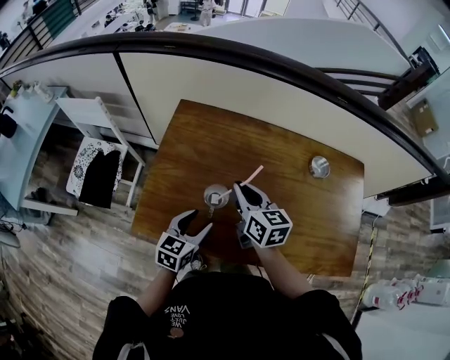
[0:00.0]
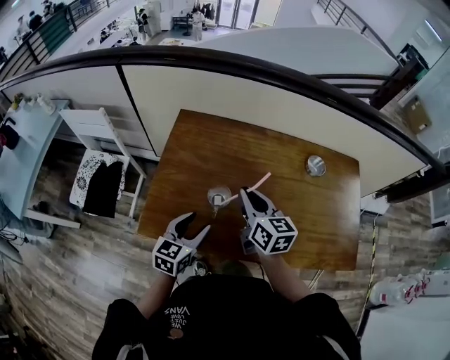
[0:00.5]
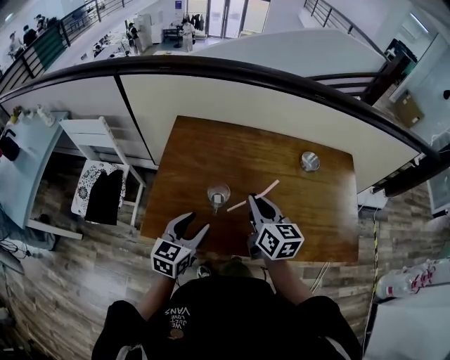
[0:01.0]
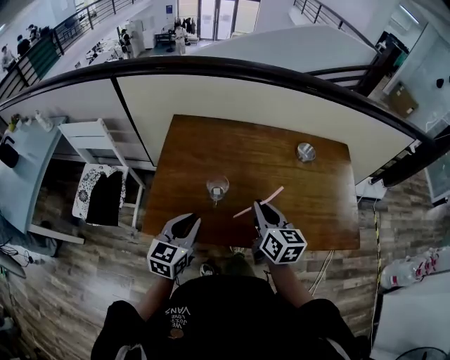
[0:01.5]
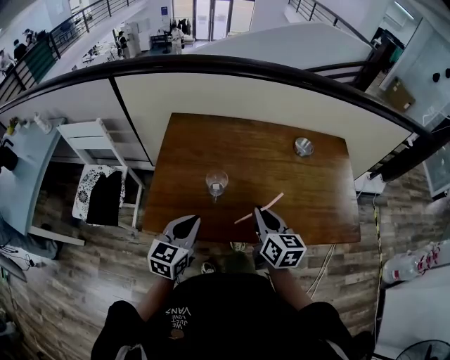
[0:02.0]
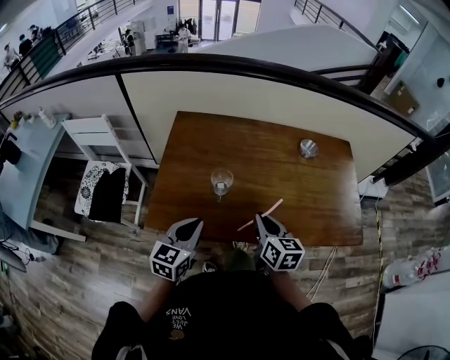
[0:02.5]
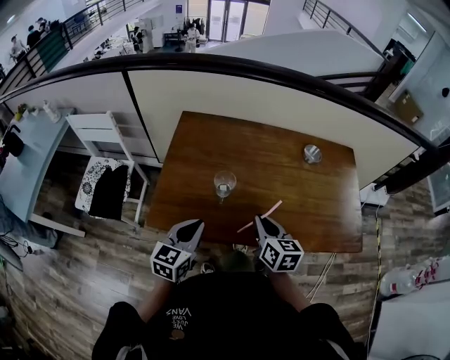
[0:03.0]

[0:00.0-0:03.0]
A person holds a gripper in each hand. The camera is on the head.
0:00.0 to 0:01.5: The left gripper shifts approximately 10 cm upward and backward, and closes. Meanwhile the right gripper heads backward and to the right, covering some 15 cm.
0:01.5 to 0:03.0: The right gripper goes roughly 5 cm downward.

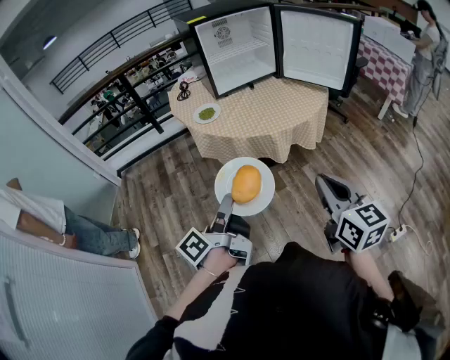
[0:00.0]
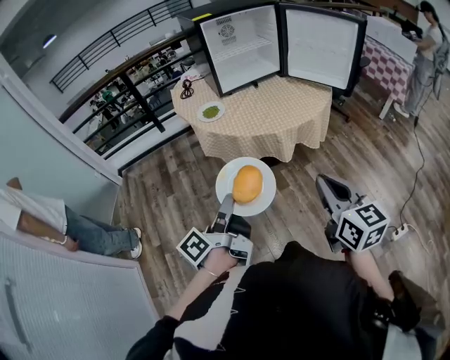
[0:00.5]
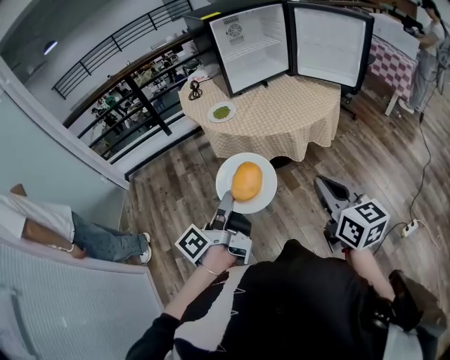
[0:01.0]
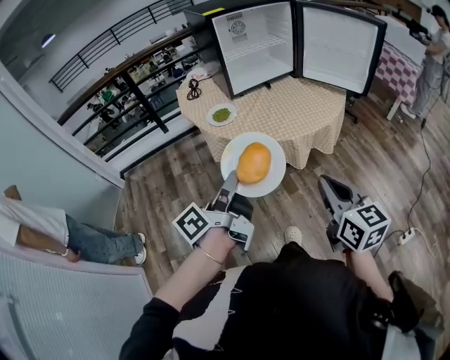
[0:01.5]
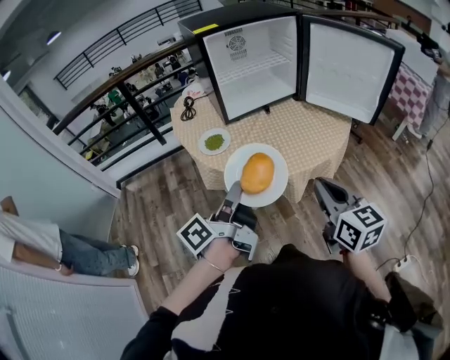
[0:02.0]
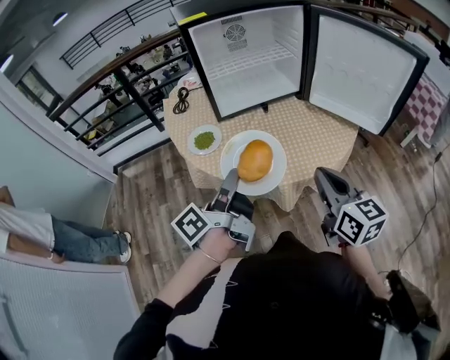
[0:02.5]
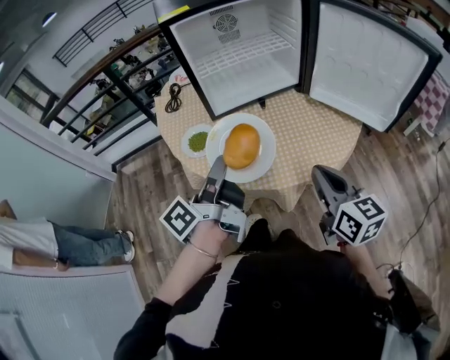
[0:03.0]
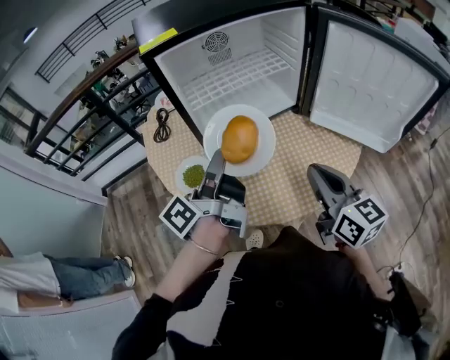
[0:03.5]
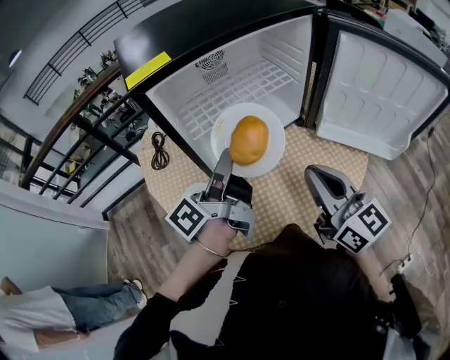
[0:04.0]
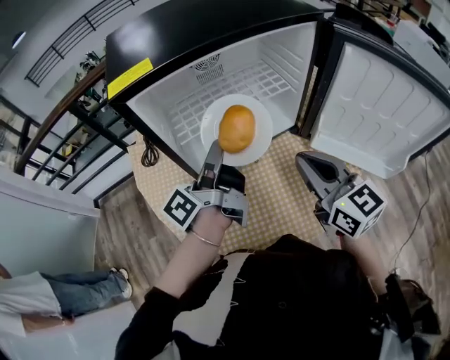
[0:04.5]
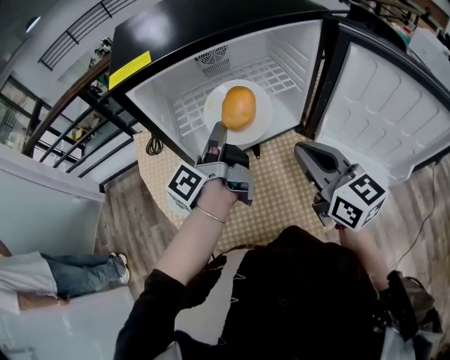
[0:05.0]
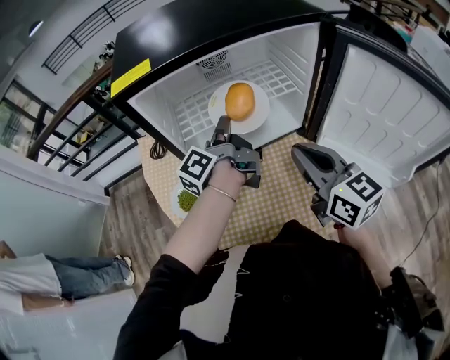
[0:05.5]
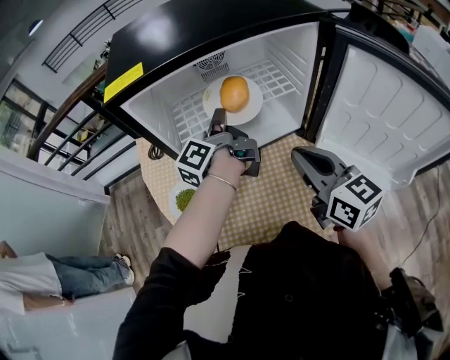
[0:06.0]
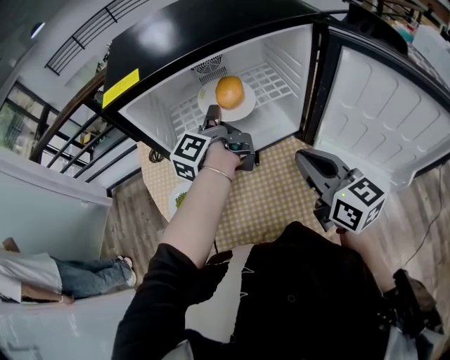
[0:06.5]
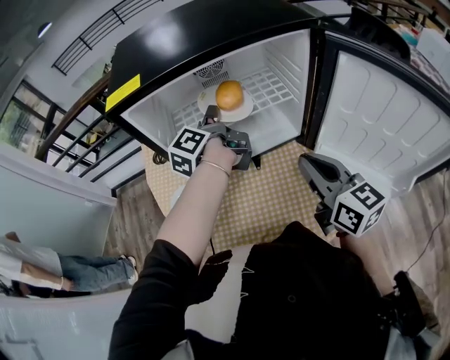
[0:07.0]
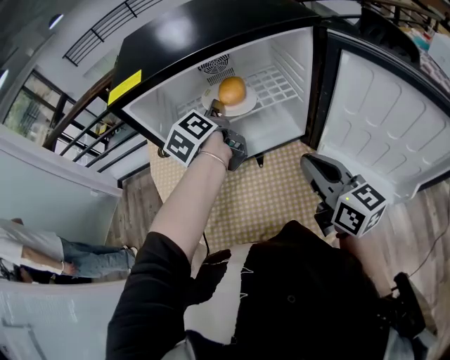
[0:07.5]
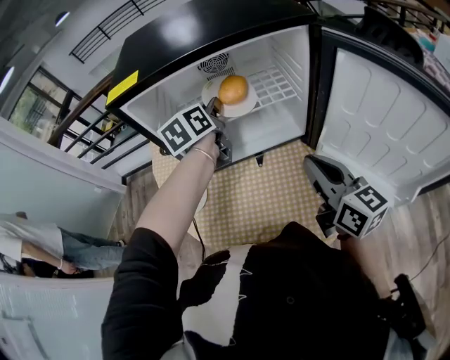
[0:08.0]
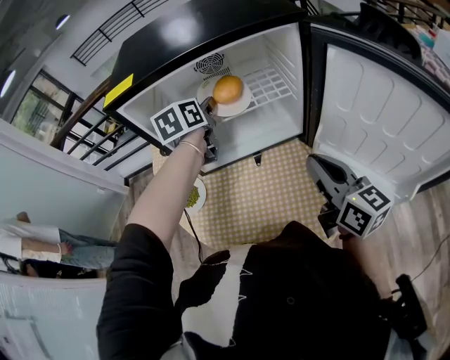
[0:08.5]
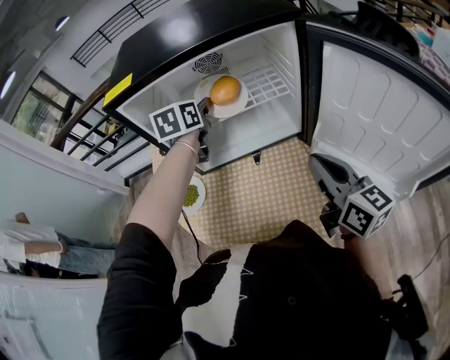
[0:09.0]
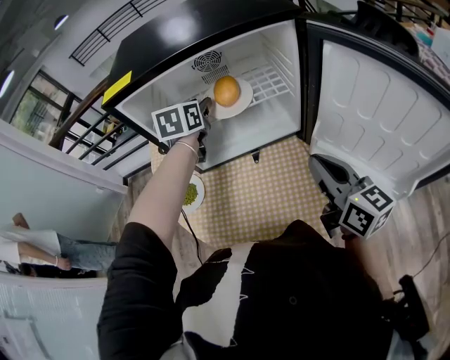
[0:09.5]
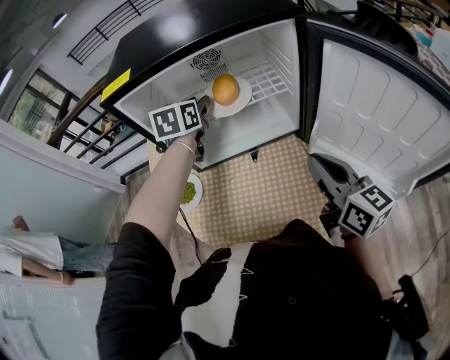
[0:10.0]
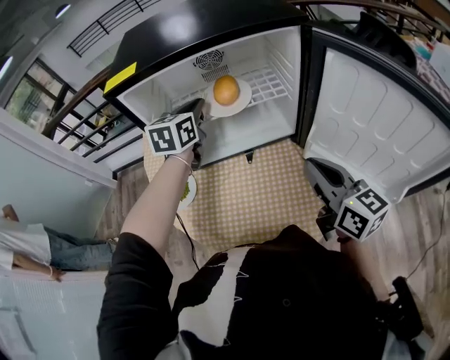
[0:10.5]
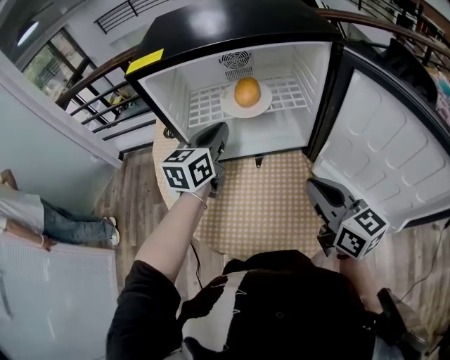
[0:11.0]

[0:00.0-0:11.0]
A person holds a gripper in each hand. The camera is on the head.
0:00.0 to 0:02.0: The grippers both shift forward by about 25 cm.
0:02.0 to 0:03.5: Both grippers move forward, approximately 25 cm.
0:03.5 to 0:05.5: The two grippers go approximately 20 cm forward.
0:05.5 to 0:07.5: The left gripper heads forward, covering some 5 cm, and rotates approximately 40 degrees. Meanwhile the right gripper changes place by roughly 5 cm.
0:07.5 to 0:09.0: The left gripper changes its angle by approximately 40 degrees.
0:09.0 to 0:11.0: The left gripper moves backward, some 10 cm, and closes up.

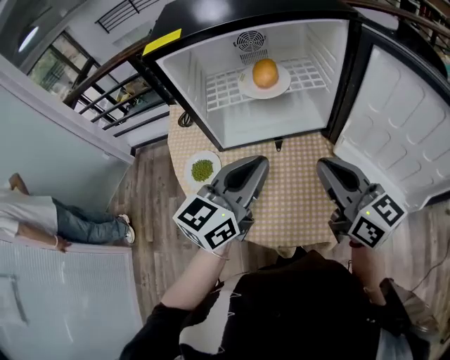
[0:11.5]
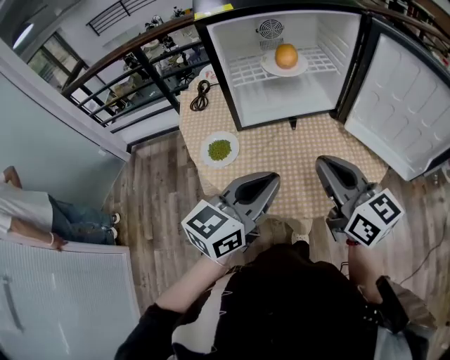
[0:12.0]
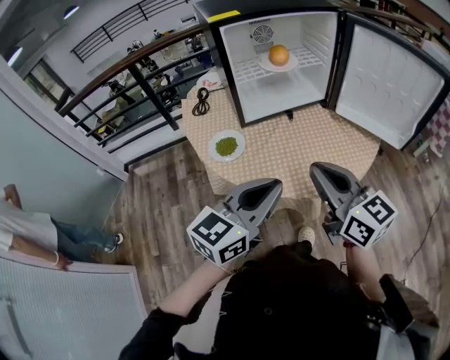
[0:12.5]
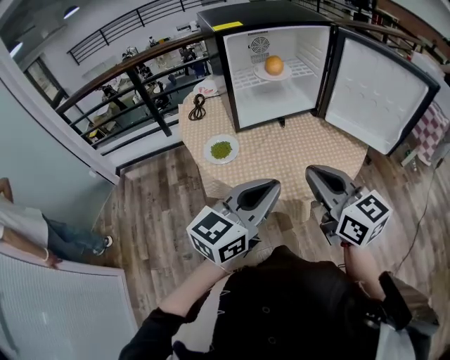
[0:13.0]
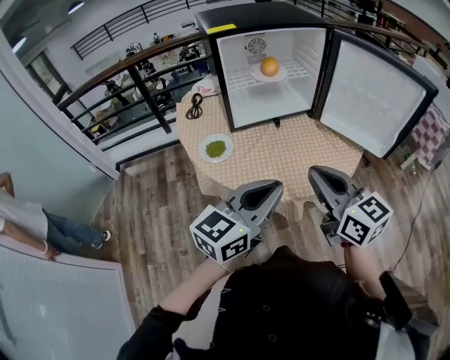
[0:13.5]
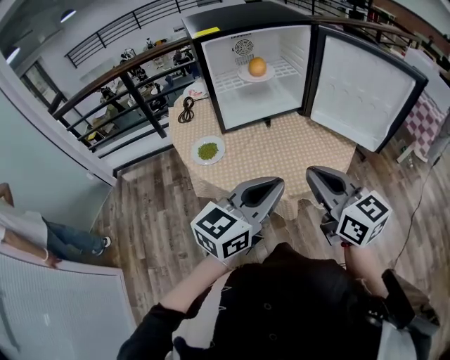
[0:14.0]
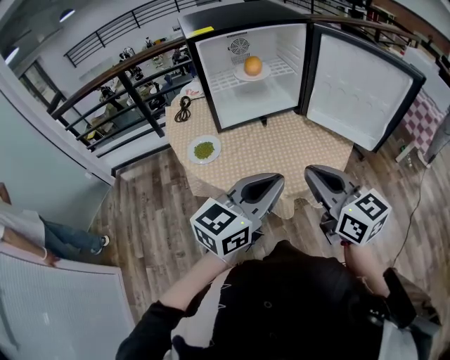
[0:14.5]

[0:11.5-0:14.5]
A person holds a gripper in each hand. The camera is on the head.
0:11.5 to 0:13.0: The right gripper moves backward and to the left, approximately 25 cm, while the left gripper goes approximately 25 cm backward.
0:13.0 to 0:14.5: The grippers both shift to the right by roughly 10 cm.

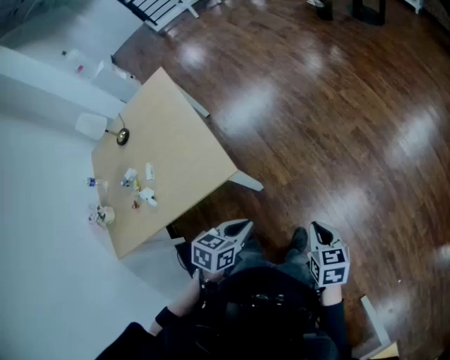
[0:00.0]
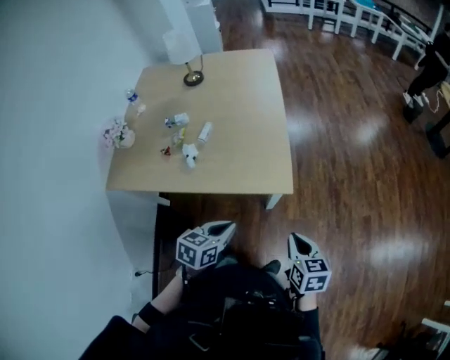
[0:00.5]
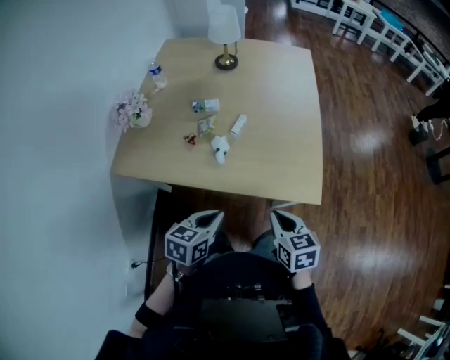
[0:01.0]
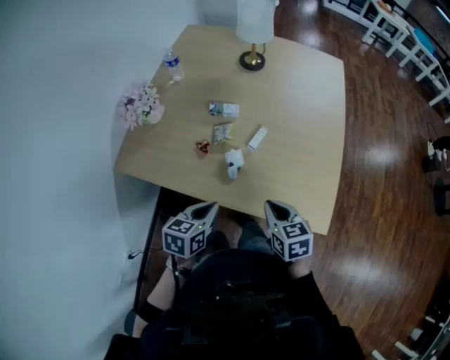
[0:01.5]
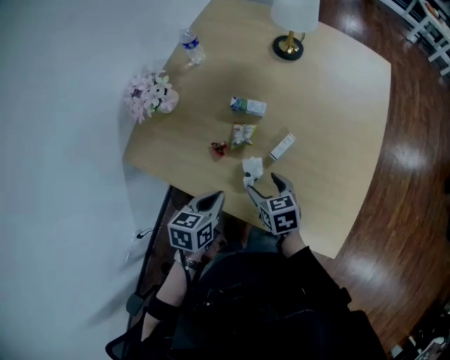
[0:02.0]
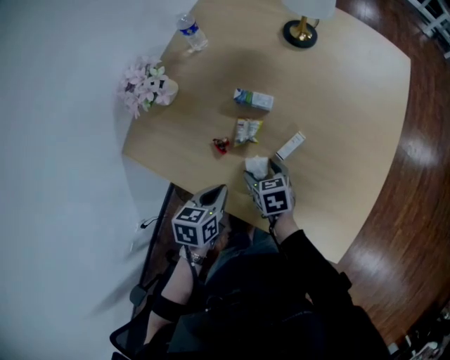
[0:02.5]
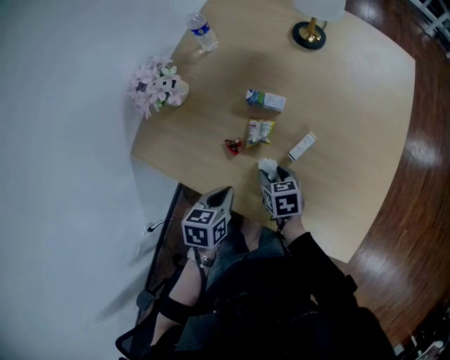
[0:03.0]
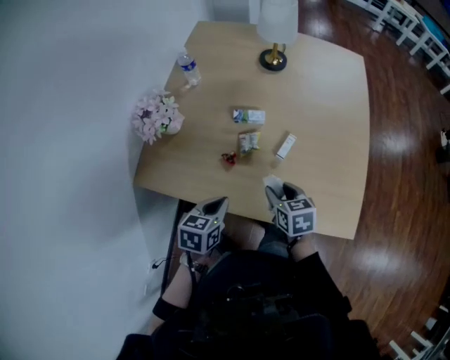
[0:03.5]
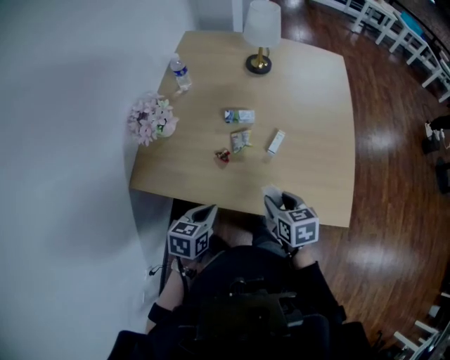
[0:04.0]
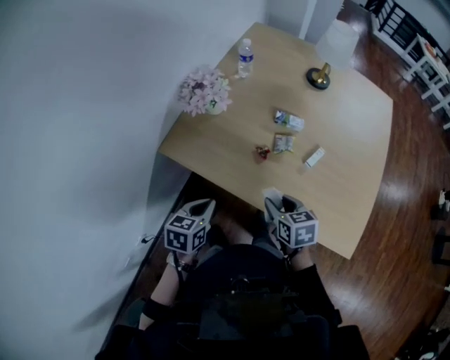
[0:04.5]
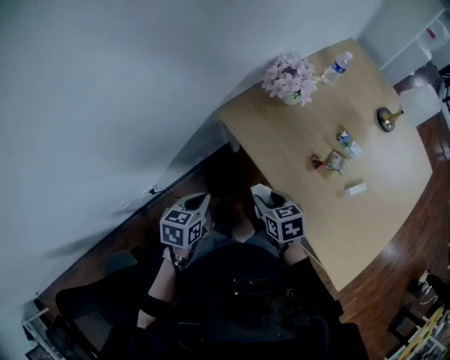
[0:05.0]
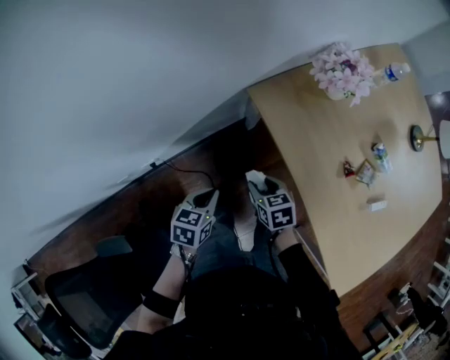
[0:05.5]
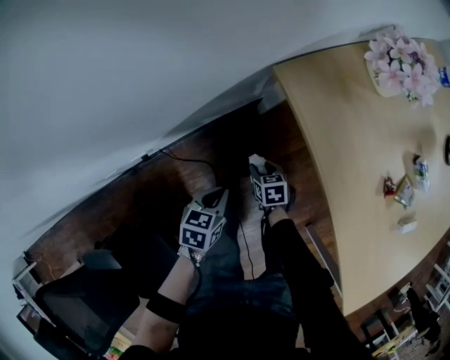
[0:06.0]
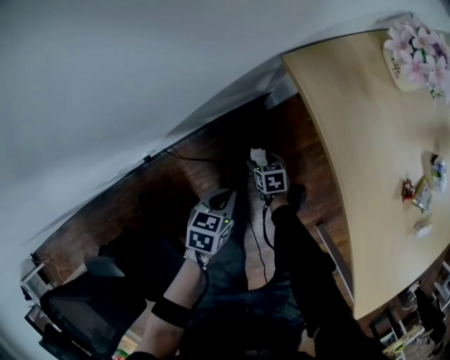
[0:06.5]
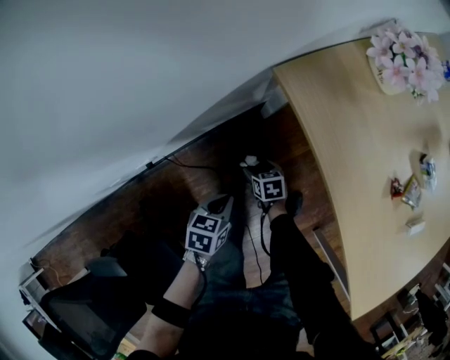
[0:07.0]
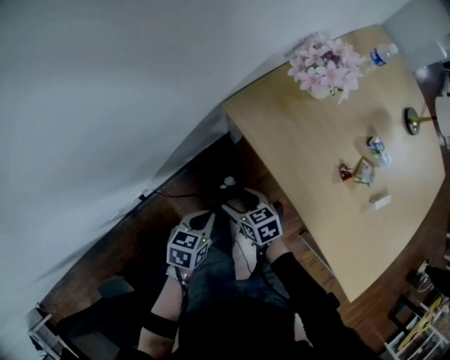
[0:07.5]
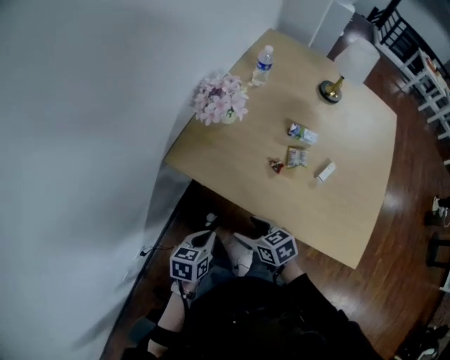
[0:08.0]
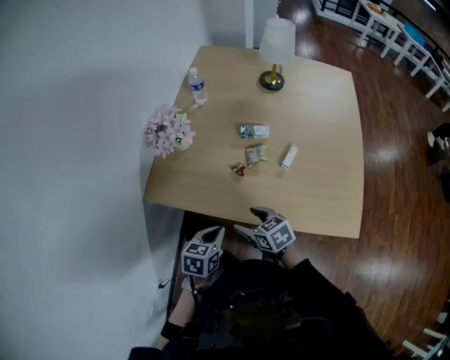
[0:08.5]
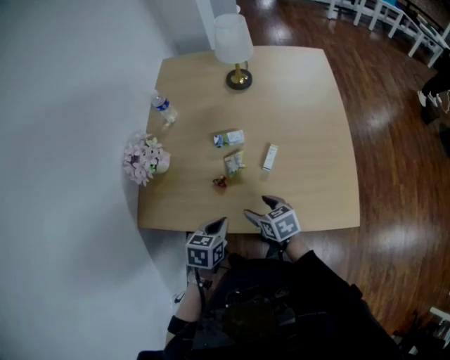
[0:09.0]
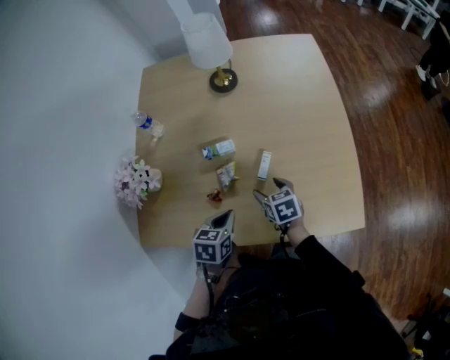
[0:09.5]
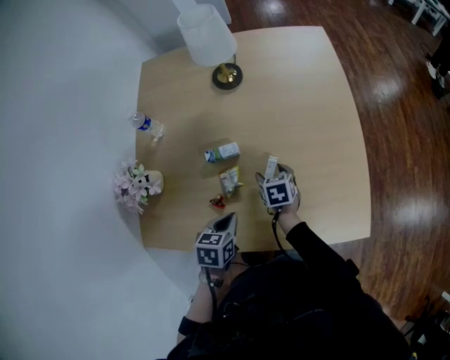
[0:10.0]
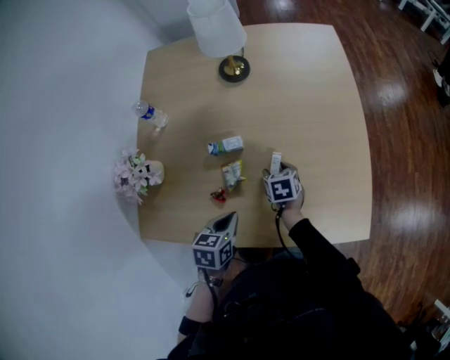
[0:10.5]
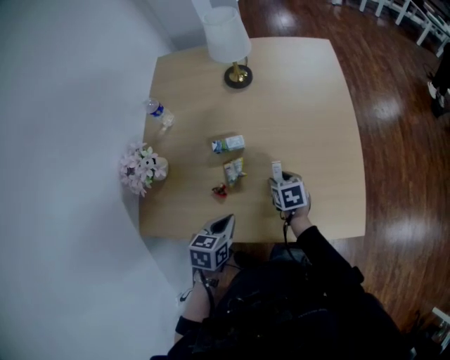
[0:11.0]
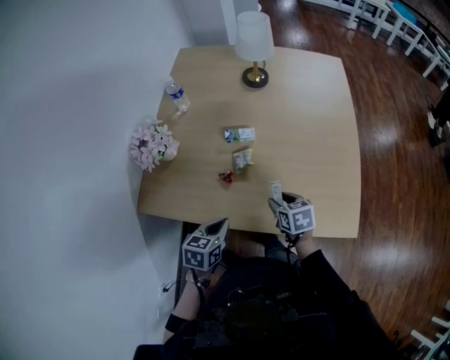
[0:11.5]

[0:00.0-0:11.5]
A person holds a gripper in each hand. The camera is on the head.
0:00.0 to 0:02.0: Both grippers are carried about 70 cm. The right gripper swivels roughly 60 degrees, and opens. Meanwhile the left gripper turns by roughly 60 degrees.
0:02.0 to 0:04.0: The right gripper travels backward and upward by approximately 10 cm, and closes its fingers. The left gripper travels to the left and backward by roughly 10 cm.
0:04.0 to 0:06.0: The left gripper shifts by about 40 cm, and swivels roughly 50 degrees. The right gripper shifts about 40 cm downward, and rotates roughly 50 degrees.
0:06.0 to 0:07.5: The right gripper travels upward by approximately 20 cm, and opens. The left gripper travels upward by about 10 cm.
0:07.5 to 0:09.5: The two grippers travel together, approximately 50 cm. The right gripper swivels some 60 degrees, while the left gripper turns by some 50 degrees.
0:09.5 to 0:11.5: The right gripper heads backward, covering about 10 cm, and closes; the left gripper travels backward and to the left by some 10 cm.
